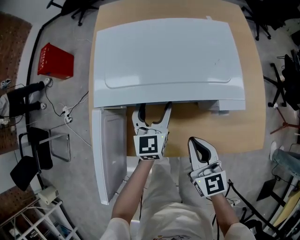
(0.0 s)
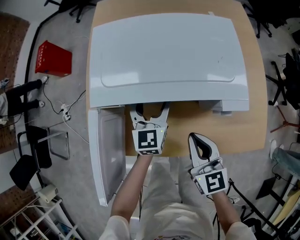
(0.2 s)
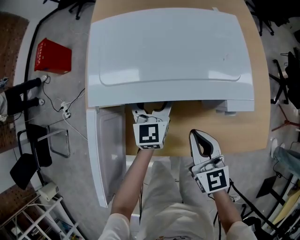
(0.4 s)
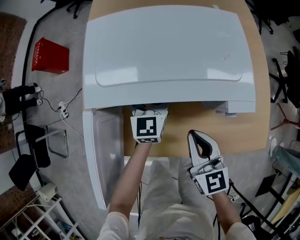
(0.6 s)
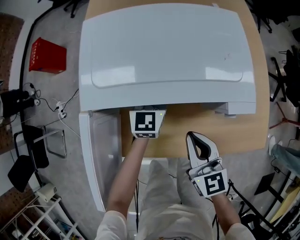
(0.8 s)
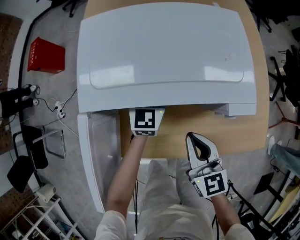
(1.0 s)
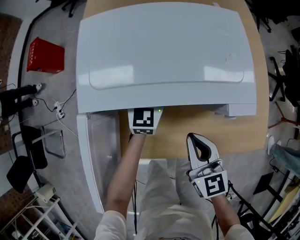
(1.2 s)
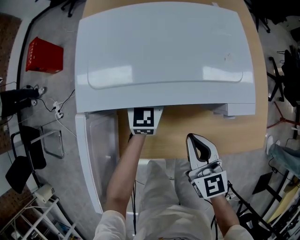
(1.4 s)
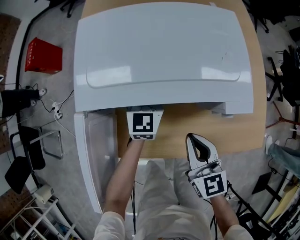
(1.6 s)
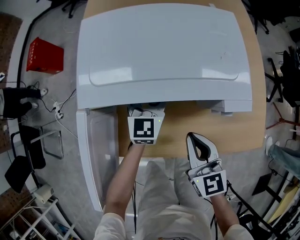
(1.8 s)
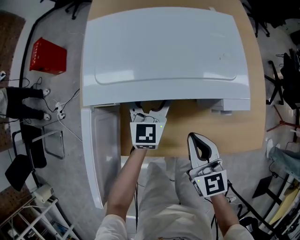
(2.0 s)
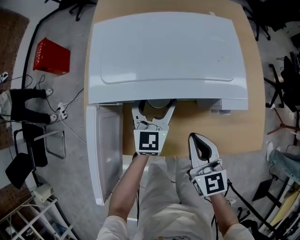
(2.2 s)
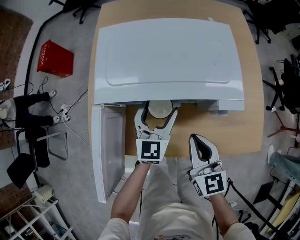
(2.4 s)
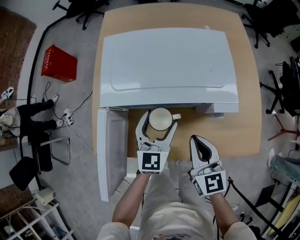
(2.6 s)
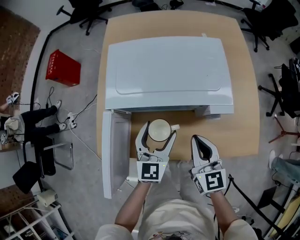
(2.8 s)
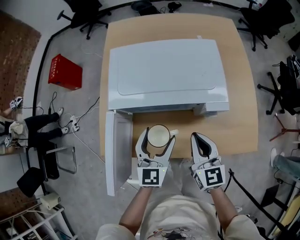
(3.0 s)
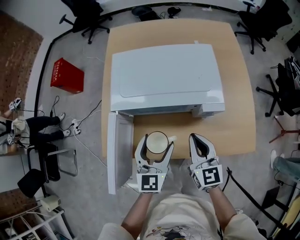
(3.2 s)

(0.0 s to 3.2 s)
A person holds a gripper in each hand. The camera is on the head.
0.0 s - 1.6 s: The left gripper travels forward by approximately 5 cm.
1.6 s - 3.2 s: The left gripper moves backward and upward, roughly 25 cm. Meanwhile the right gripper goes about 10 cm upward.

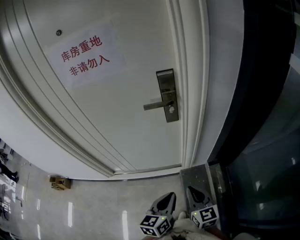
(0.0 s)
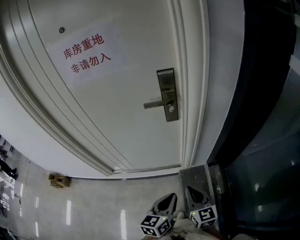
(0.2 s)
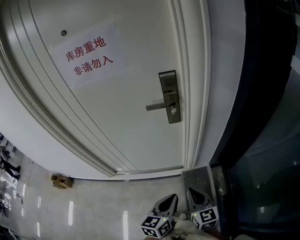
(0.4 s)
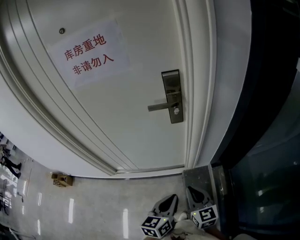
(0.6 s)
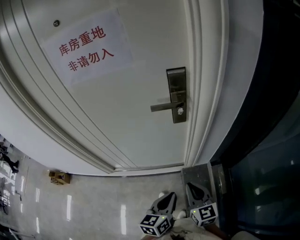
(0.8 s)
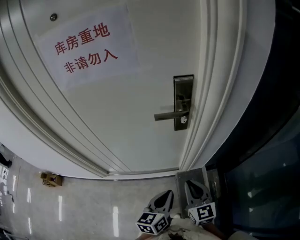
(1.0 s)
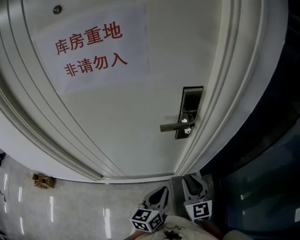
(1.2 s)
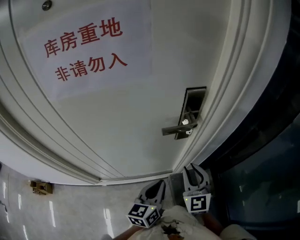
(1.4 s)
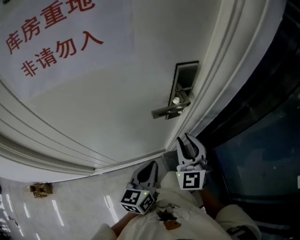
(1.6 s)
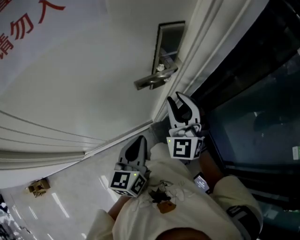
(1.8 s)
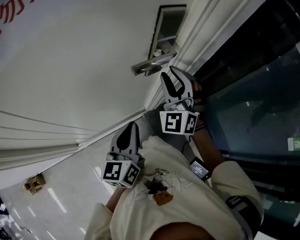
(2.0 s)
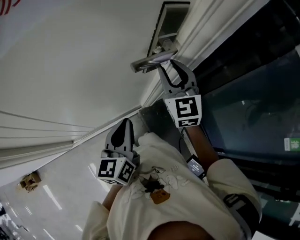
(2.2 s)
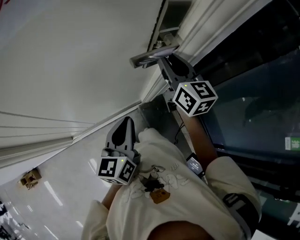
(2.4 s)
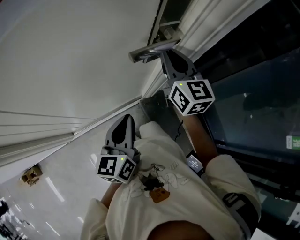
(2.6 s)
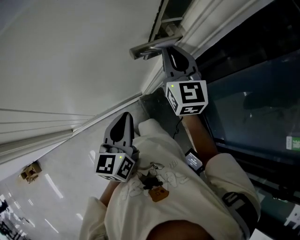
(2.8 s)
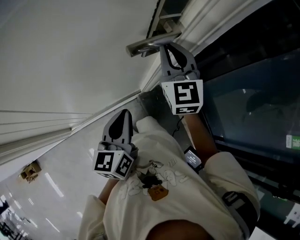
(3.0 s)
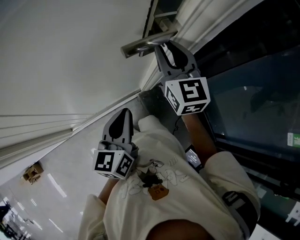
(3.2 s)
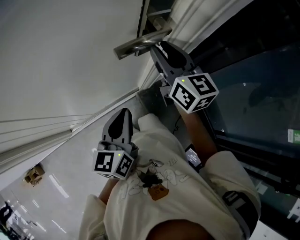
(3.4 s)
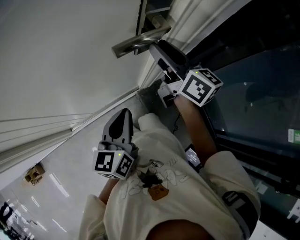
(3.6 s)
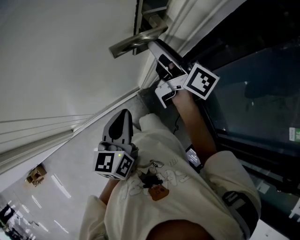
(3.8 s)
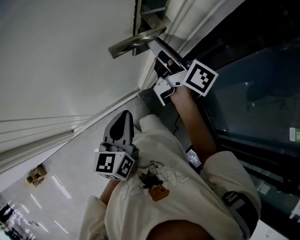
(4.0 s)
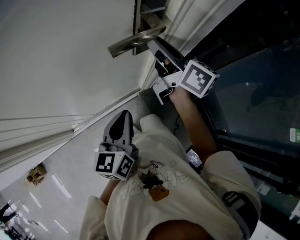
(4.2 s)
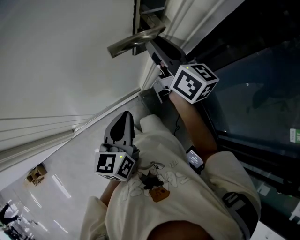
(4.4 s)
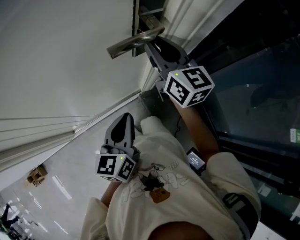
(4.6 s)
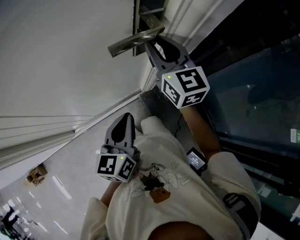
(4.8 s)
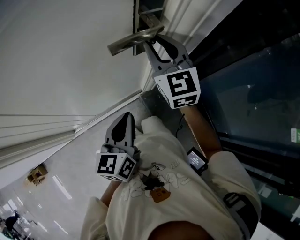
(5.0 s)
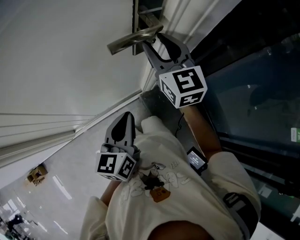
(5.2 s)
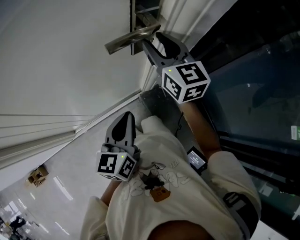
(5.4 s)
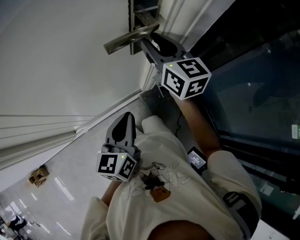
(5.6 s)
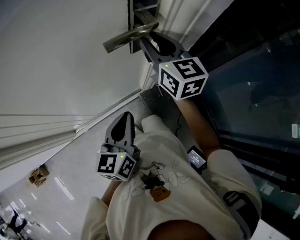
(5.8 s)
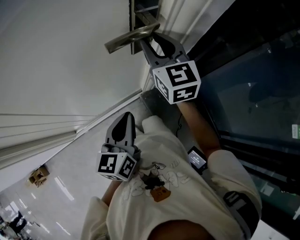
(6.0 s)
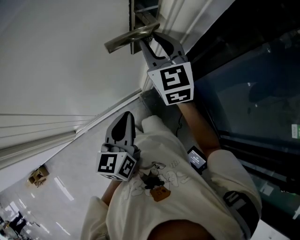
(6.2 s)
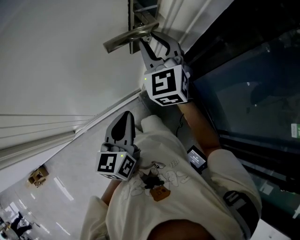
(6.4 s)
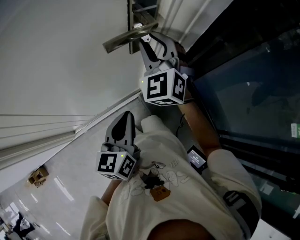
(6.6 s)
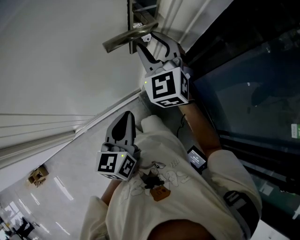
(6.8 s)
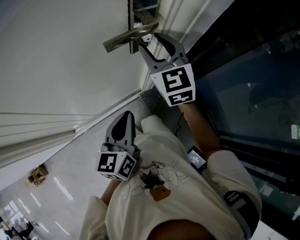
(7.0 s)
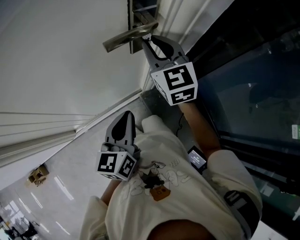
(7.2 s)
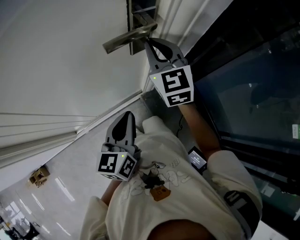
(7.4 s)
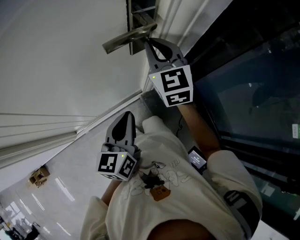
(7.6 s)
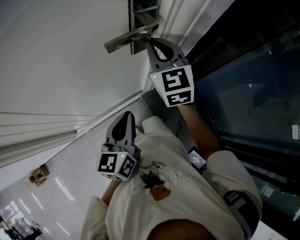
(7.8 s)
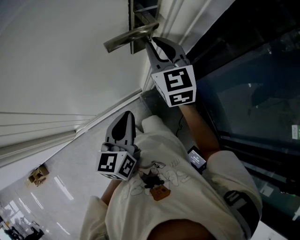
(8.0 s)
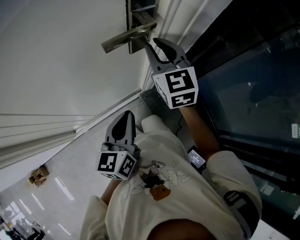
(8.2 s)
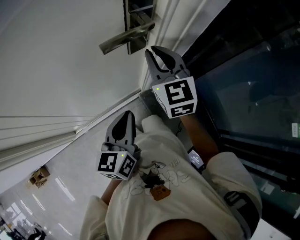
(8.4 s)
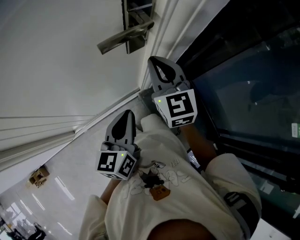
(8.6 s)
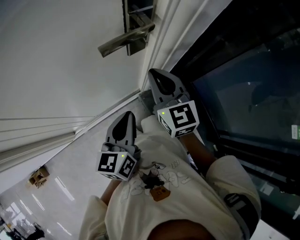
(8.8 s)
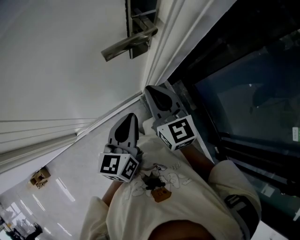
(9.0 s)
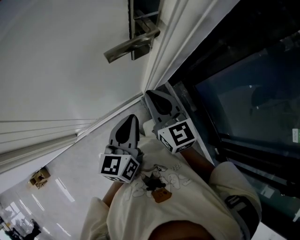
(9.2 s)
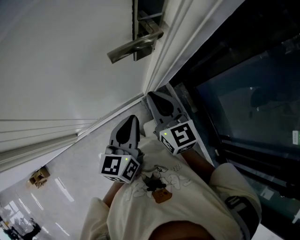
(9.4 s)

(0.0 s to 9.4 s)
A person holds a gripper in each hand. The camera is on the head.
0.0 s - 1.6 s: The left gripper shifts about 25 cm forward and to the left; the right gripper shifts about 25 cm forward, rotates about 40 degrees, and opens.
1.6 s - 3.2 s: The right gripper heads forward, covering about 10 cm.
3.2 s - 4.8 s: The right gripper opens, then closes once more.
4.8 s - 6.2 s: The grippers make only small movements.
6.2 s - 7.8 s: The right gripper closes.
7.8 s - 9.4 s: The right gripper travels backward and downward by some 15 cm, and rotates about 20 degrees.

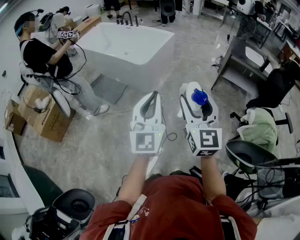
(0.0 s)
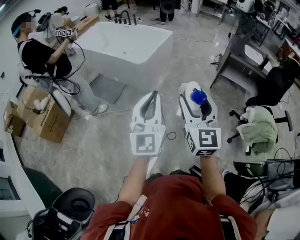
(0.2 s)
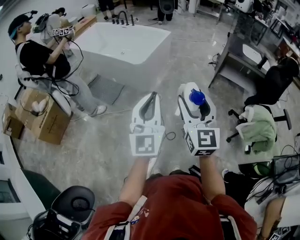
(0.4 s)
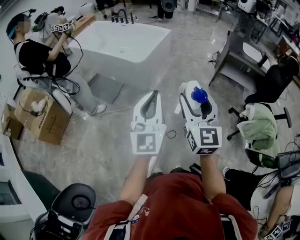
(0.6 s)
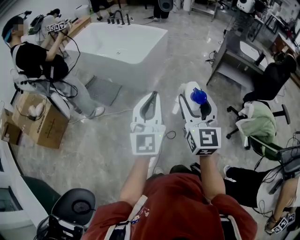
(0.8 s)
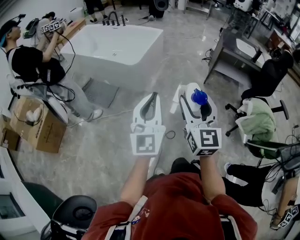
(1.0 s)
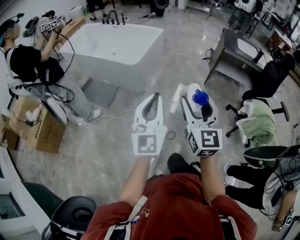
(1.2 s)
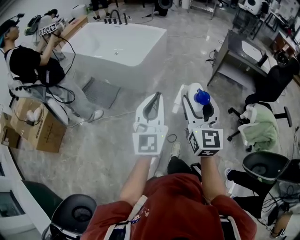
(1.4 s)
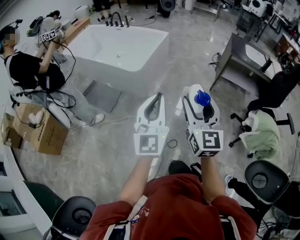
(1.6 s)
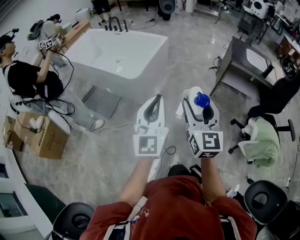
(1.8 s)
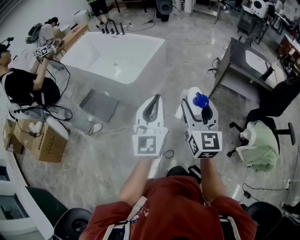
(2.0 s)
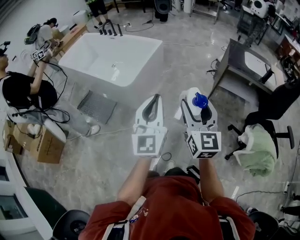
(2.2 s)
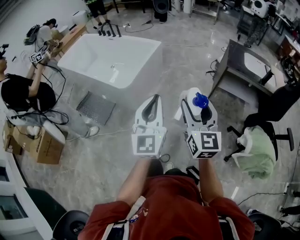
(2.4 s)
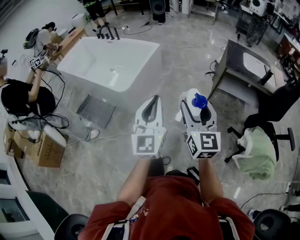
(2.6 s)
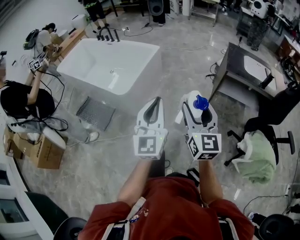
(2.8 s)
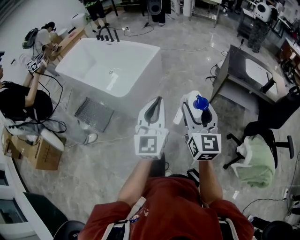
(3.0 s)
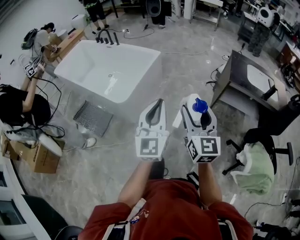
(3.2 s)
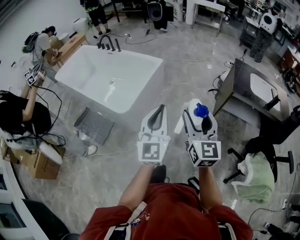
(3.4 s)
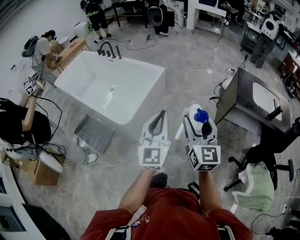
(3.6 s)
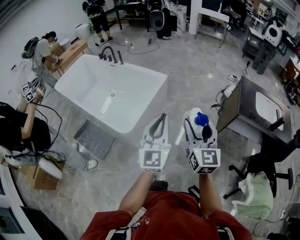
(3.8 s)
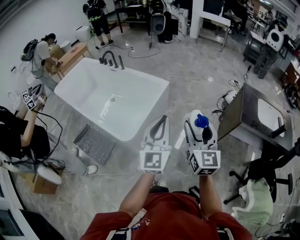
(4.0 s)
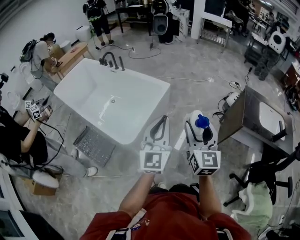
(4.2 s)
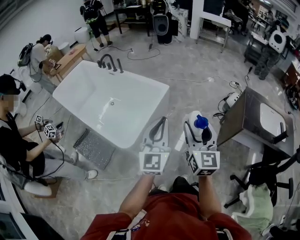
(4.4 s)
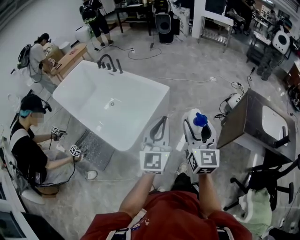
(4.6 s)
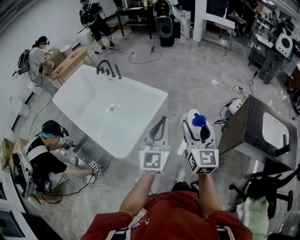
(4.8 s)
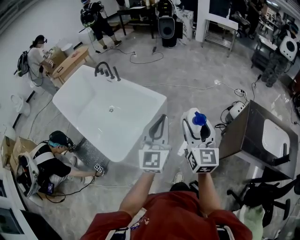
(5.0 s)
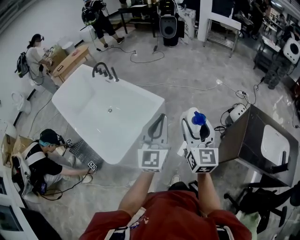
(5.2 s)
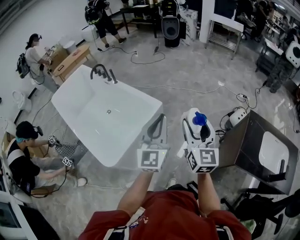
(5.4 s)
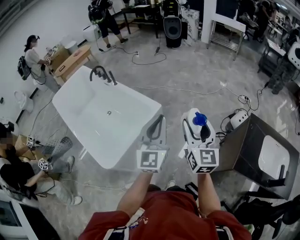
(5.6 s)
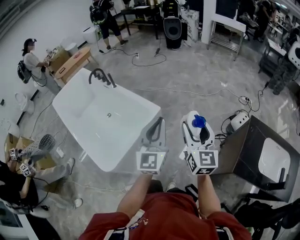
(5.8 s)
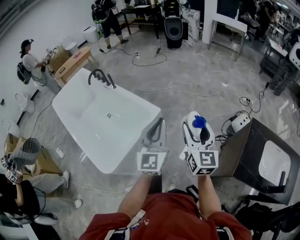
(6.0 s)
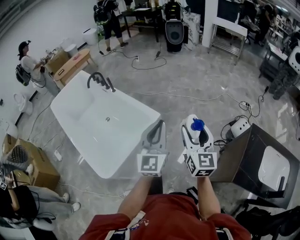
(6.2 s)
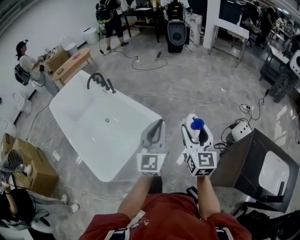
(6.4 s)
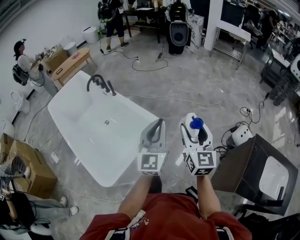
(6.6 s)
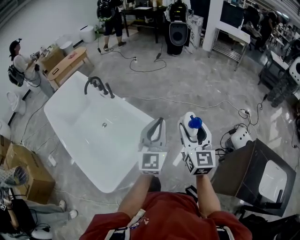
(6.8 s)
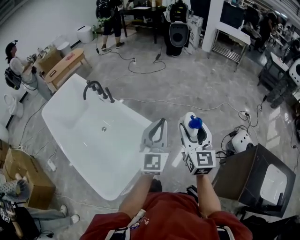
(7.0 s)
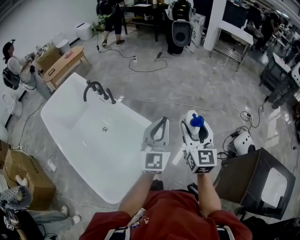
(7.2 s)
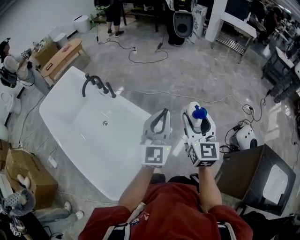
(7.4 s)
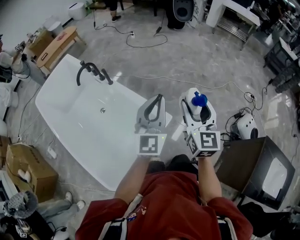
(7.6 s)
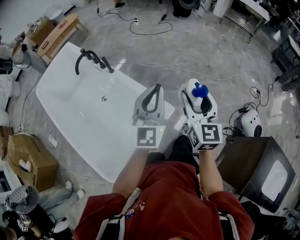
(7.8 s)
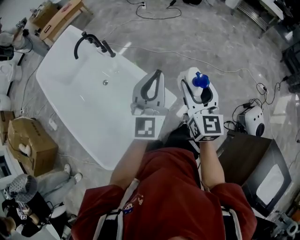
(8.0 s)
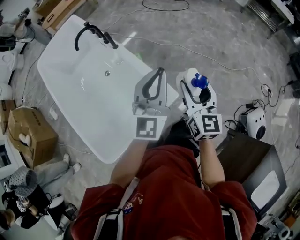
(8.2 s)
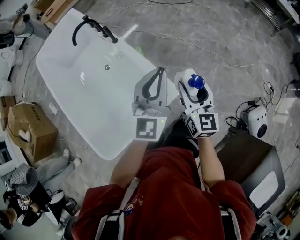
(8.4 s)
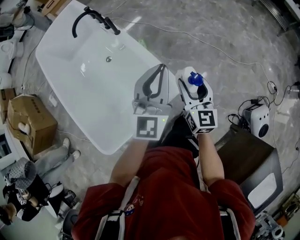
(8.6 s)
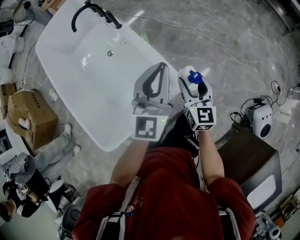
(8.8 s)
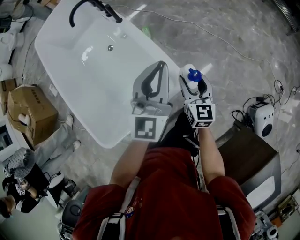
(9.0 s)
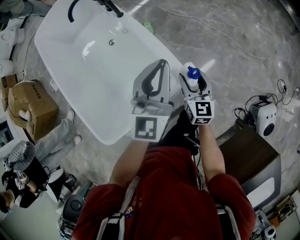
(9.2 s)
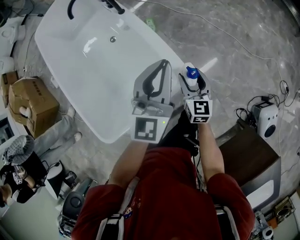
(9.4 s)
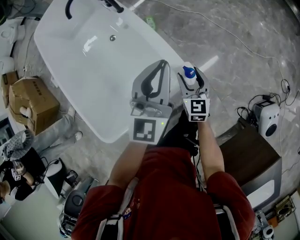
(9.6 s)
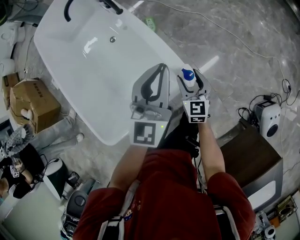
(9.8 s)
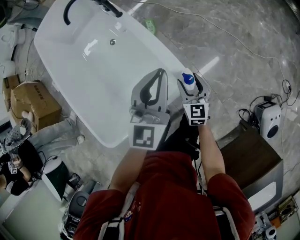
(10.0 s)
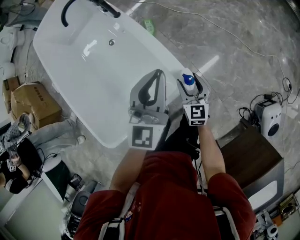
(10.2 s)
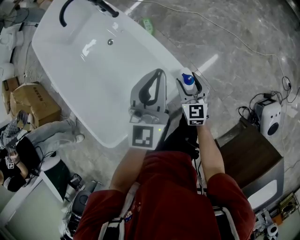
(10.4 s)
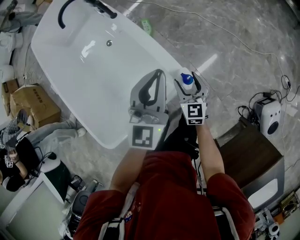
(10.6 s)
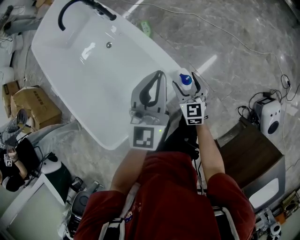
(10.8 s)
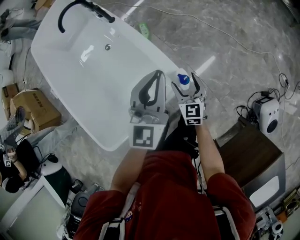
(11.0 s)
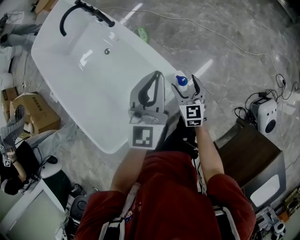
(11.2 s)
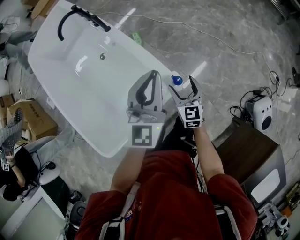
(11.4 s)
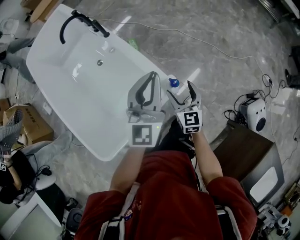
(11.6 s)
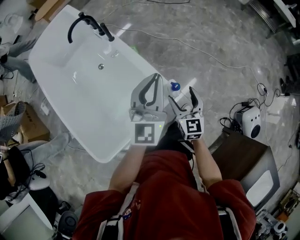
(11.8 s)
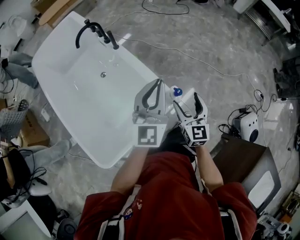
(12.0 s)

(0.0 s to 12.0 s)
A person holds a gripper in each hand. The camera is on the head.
0.0 s - 1.6 s: The two grippers go approximately 15 cm forward.
1.6 s - 3.0 s: The grippers both shift forward and to the right by some 25 cm.
3.0 s - 4.4 s: Both grippers travel together forward, about 35 cm.
4.4 s - 6.0 s: Both grippers move forward and to the right, approximately 35 cm.
6.0 s - 7.6 s: The grippers both shift forward and to the left by approximately 35 cm.
7.6 s - 9.0 s: The right gripper heads downward, covering about 25 cm, and rotates about 30 degrees. The left gripper is displaced downward and forward by about 15 cm.
9.0 s - 10.4 s: The left gripper shifts approximately 5 cm downward, while the right gripper travels downward by roughly 10 cm.
10.4 s - 12.0 s: The right gripper goes some 20 cm upward; the left gripper heads upward, covering about 10 cm.
